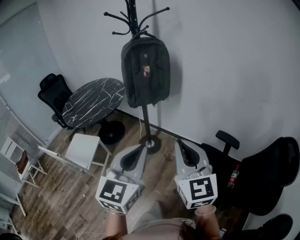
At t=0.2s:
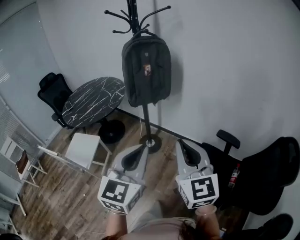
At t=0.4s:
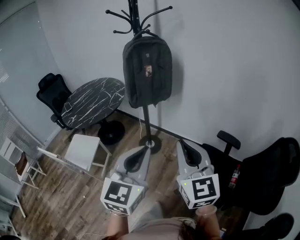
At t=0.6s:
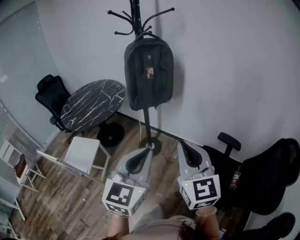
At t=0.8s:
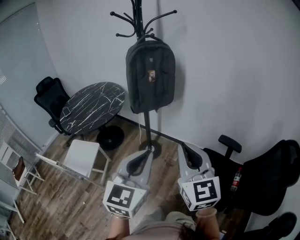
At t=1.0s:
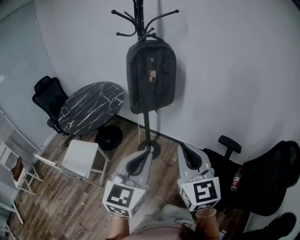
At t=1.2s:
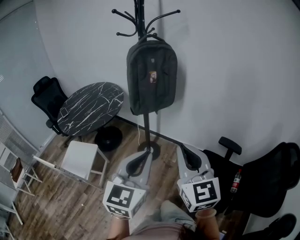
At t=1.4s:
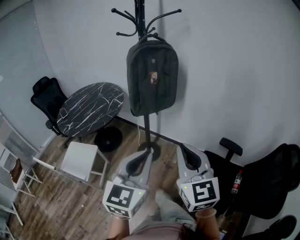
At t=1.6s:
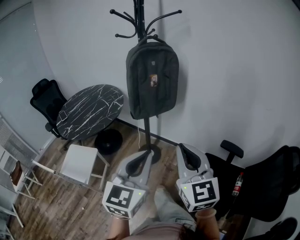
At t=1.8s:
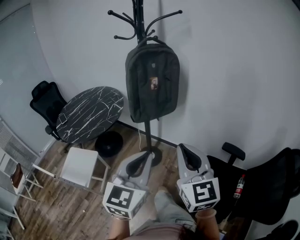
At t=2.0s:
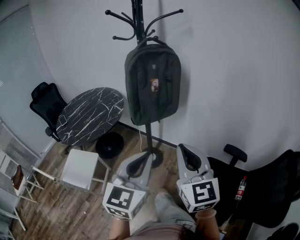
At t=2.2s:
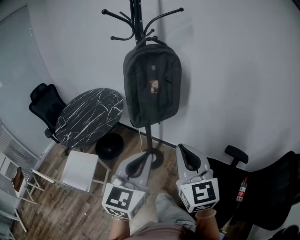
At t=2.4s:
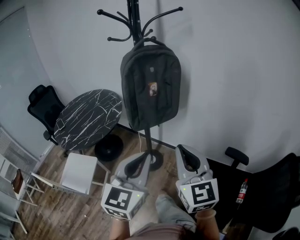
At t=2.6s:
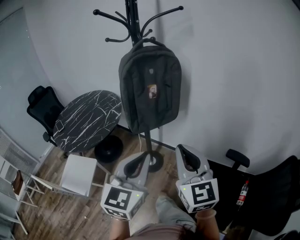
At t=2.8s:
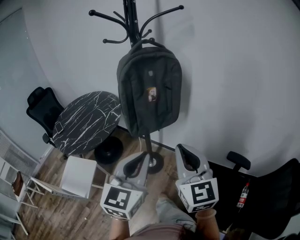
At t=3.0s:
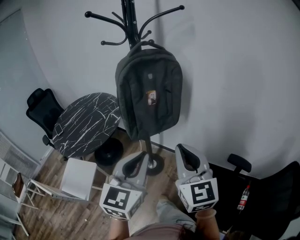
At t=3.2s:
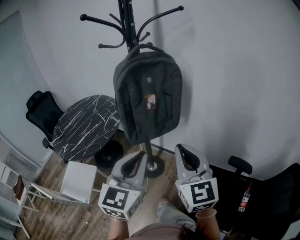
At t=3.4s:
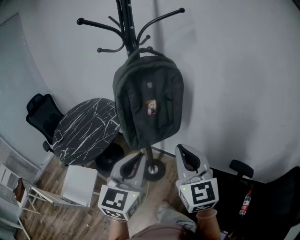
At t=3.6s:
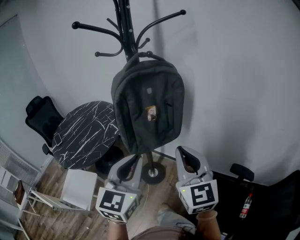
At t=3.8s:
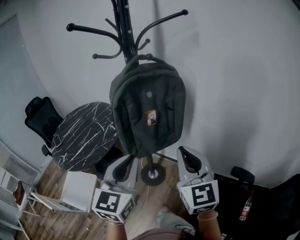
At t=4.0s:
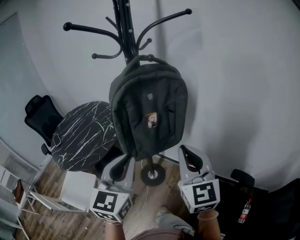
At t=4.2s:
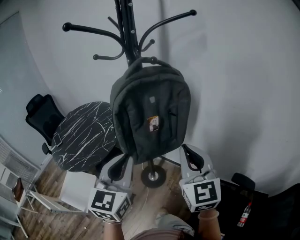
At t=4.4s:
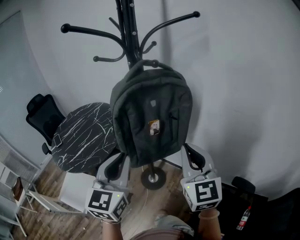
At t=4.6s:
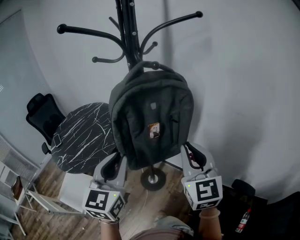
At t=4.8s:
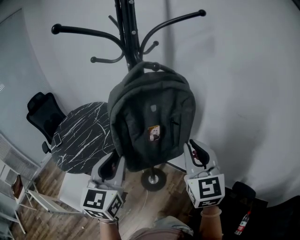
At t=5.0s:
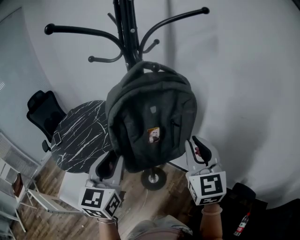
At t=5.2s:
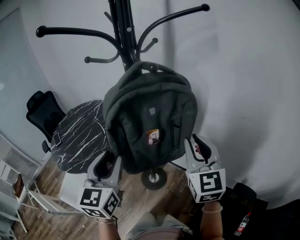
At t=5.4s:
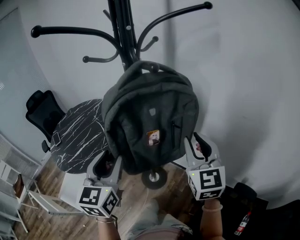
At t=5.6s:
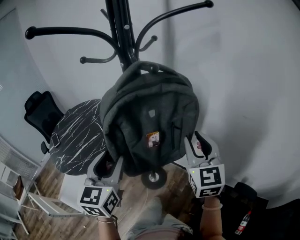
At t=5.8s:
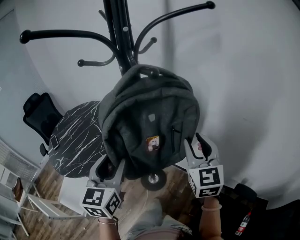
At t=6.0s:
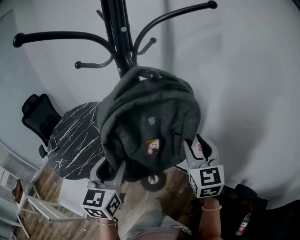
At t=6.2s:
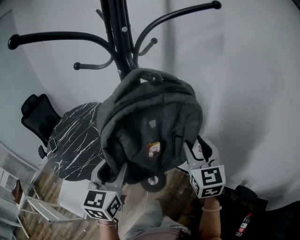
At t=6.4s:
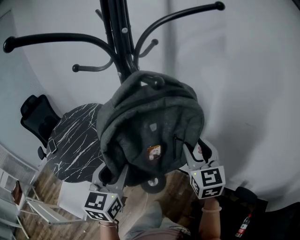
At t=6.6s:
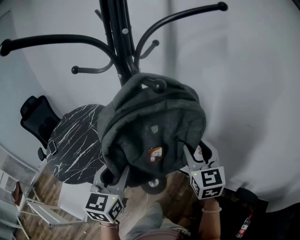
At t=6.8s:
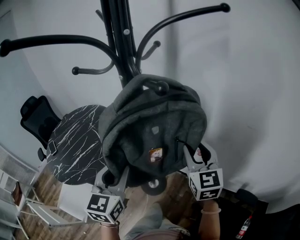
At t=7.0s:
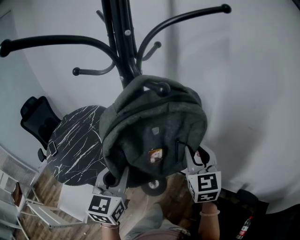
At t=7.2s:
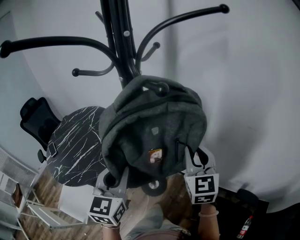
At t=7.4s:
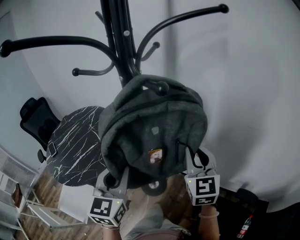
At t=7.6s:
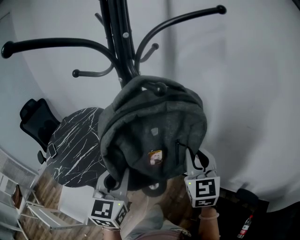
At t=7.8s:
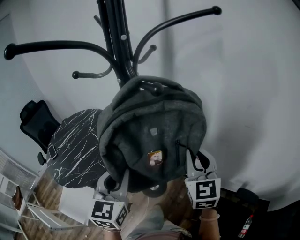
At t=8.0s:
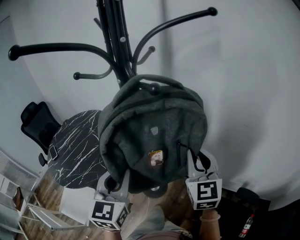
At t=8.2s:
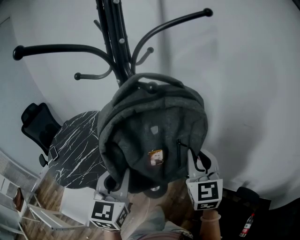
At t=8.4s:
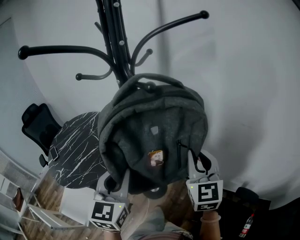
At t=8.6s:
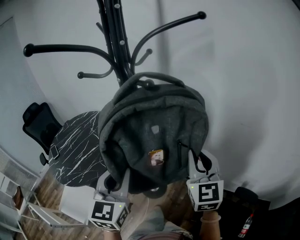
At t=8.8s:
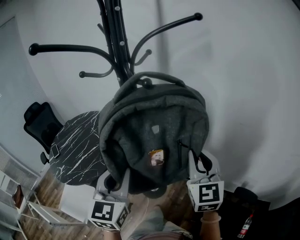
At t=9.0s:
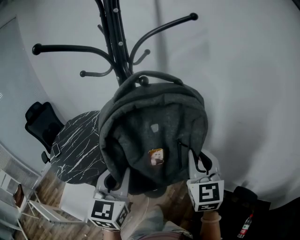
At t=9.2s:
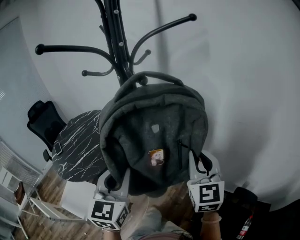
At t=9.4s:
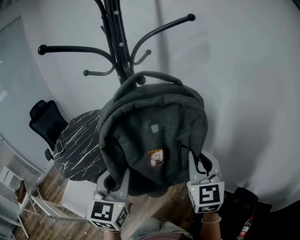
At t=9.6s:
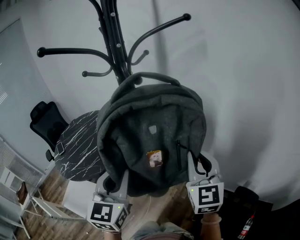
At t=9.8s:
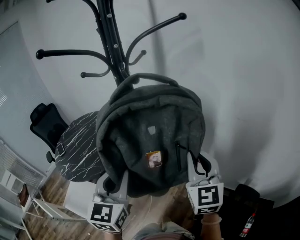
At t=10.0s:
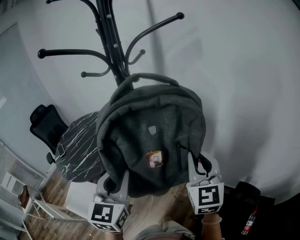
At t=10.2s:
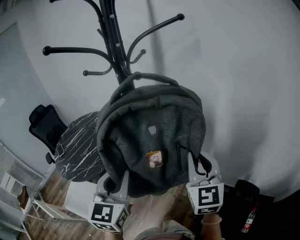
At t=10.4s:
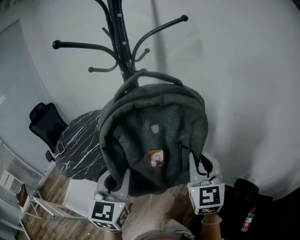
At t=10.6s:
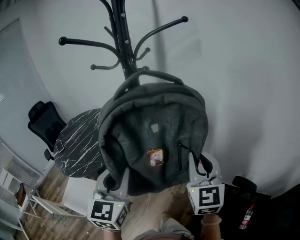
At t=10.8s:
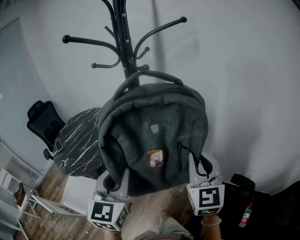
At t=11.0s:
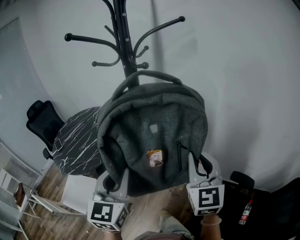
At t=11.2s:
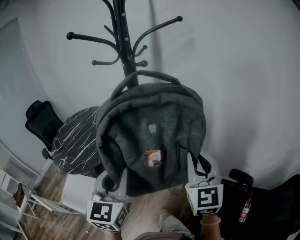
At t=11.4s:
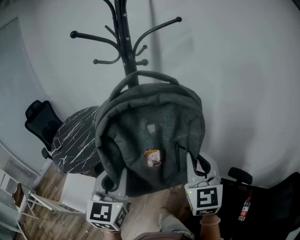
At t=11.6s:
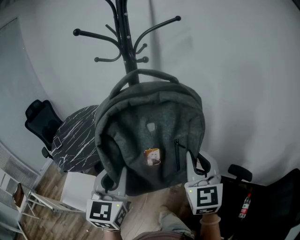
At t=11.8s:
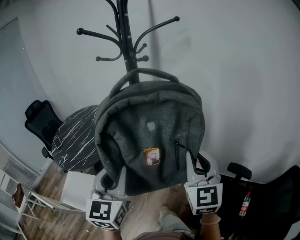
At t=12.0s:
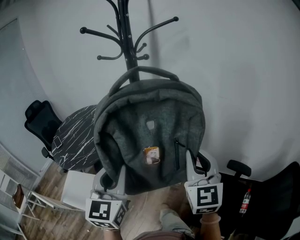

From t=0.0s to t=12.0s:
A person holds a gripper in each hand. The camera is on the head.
From t=0.0s to t=1.6s: The two grippers go about 10 cm forward and to the left.
From t=1.6s to t=3.0s: The grippers both shift forward by approximately 15 cm.
From t=3.0s to t=4.4s: The right gripper shifts about 15 cm forward. Meanwhile the left gripper goes roughly 15 cm forward and to the left.
From t=4.4s to t=6.0s: The two grippers go about 10 cm forward. The left gripper opens up; the right gripper opens up.
From t=6.0s to t=7.6s: The right gripper closes up; the left gripper closes up.
From t=7.6s to t=9.0s: The two grippers go some 5 cm backward.
From t=9.0s to t=10.4s: The grippers both shift backward by approximately 5 cm.
From t=10.4s to t=12.0s: The grippers both shift backward by approximately 15 cm.

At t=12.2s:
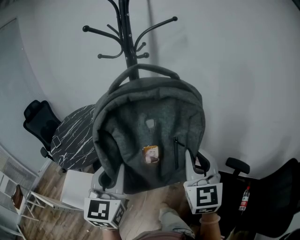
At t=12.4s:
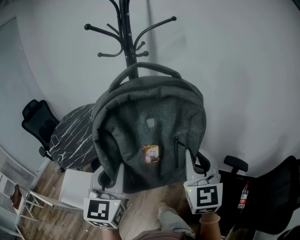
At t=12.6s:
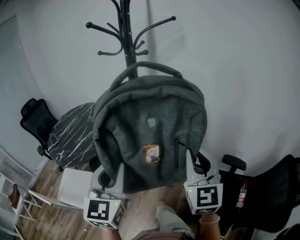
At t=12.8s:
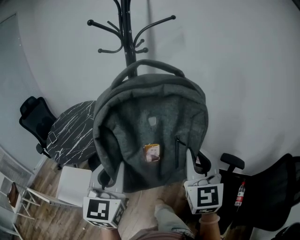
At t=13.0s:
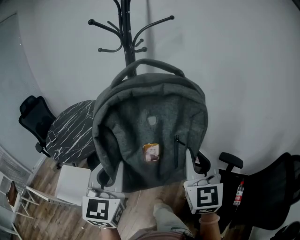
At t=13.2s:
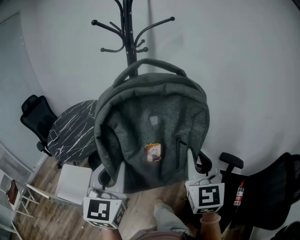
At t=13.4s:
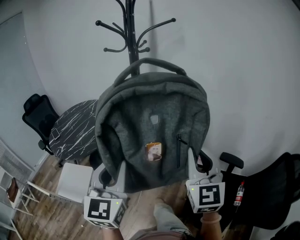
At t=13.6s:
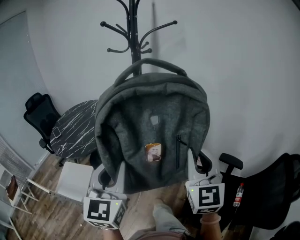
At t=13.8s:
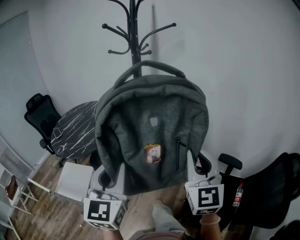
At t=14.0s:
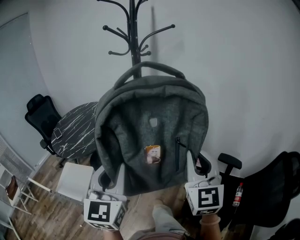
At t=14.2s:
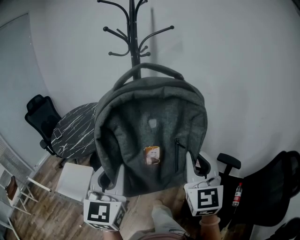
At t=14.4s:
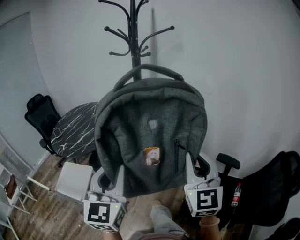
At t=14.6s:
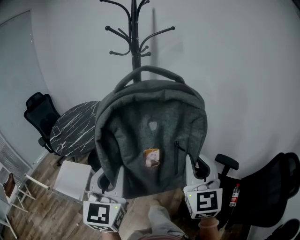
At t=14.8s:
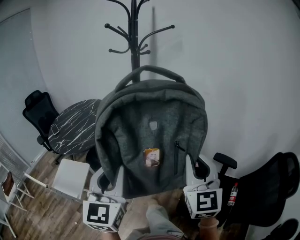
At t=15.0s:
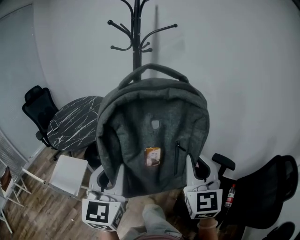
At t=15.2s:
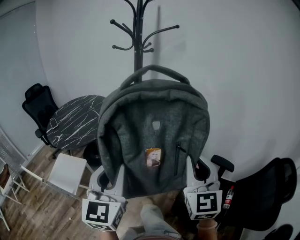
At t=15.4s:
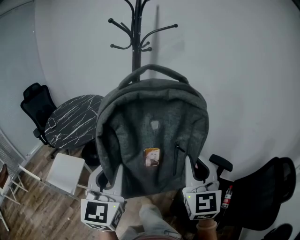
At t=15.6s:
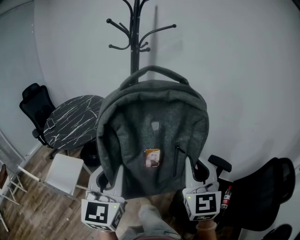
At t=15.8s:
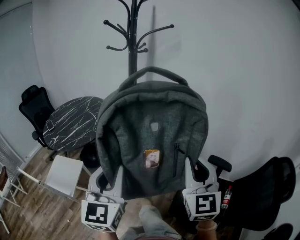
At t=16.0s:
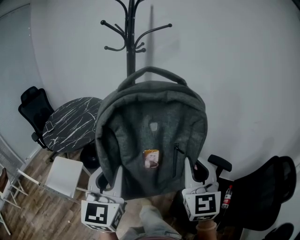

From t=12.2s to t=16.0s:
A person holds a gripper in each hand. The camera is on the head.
From t=12.2s to t=13.4s: Both grippers travel together backward, roughly 10 cm.
From t=13.4s to t=14.8s: The grippers stay close to where they were, moving slightly.
From t=14.8s to t=16.0s: Both grippers stay put.

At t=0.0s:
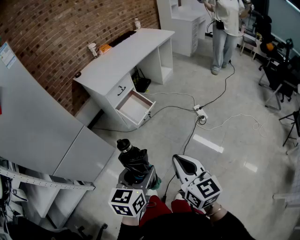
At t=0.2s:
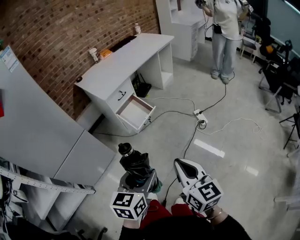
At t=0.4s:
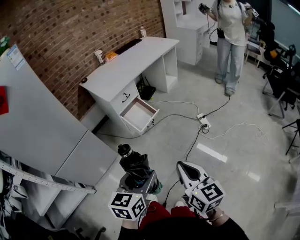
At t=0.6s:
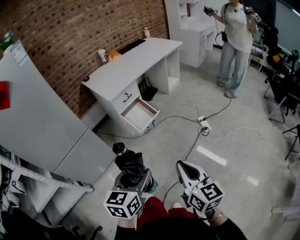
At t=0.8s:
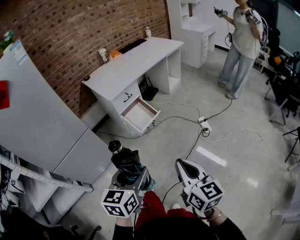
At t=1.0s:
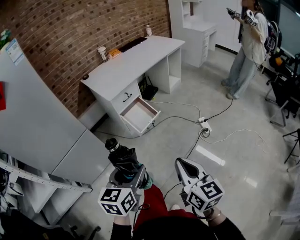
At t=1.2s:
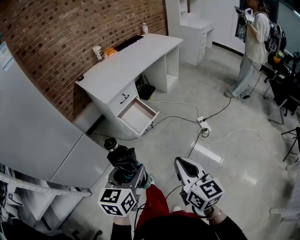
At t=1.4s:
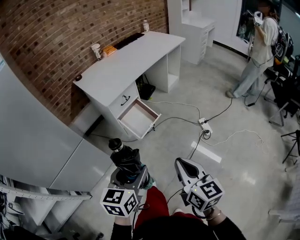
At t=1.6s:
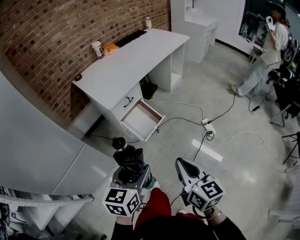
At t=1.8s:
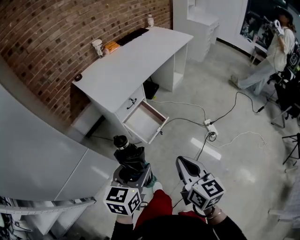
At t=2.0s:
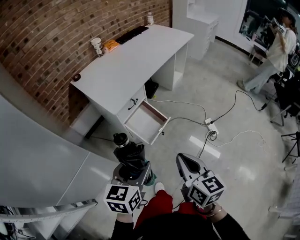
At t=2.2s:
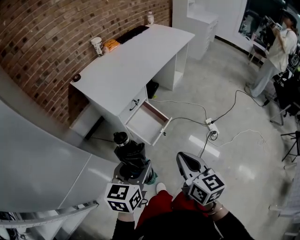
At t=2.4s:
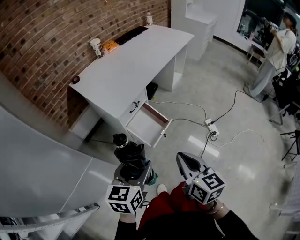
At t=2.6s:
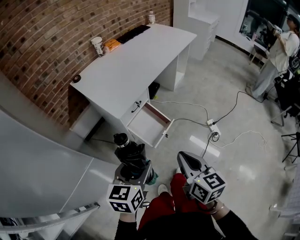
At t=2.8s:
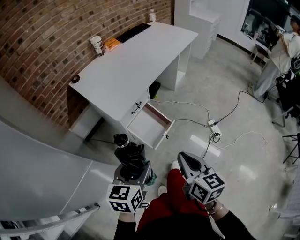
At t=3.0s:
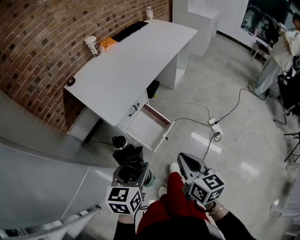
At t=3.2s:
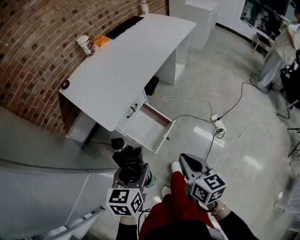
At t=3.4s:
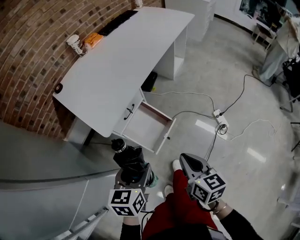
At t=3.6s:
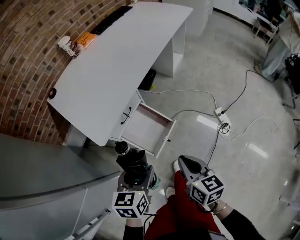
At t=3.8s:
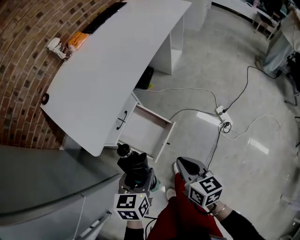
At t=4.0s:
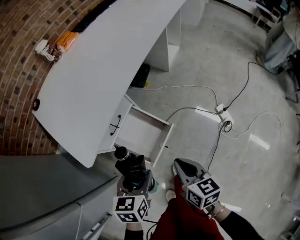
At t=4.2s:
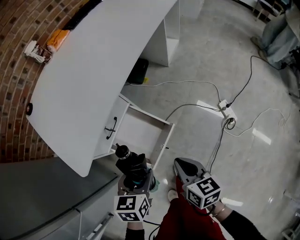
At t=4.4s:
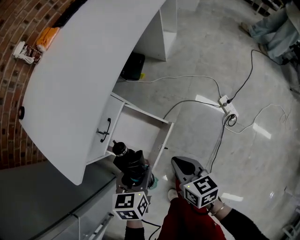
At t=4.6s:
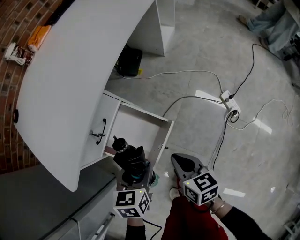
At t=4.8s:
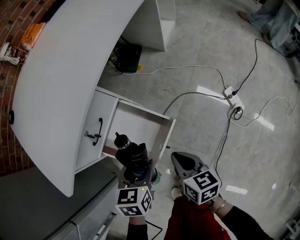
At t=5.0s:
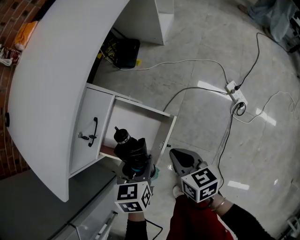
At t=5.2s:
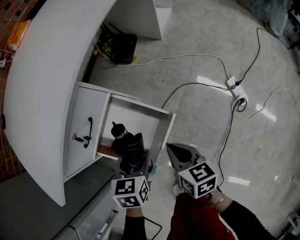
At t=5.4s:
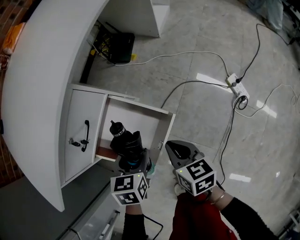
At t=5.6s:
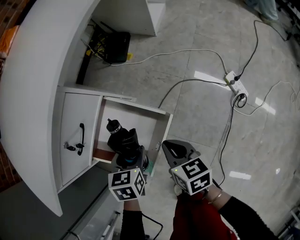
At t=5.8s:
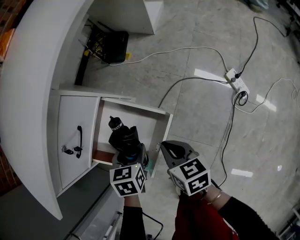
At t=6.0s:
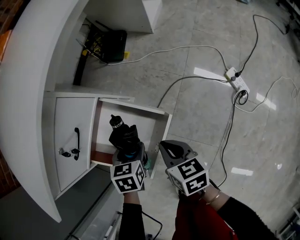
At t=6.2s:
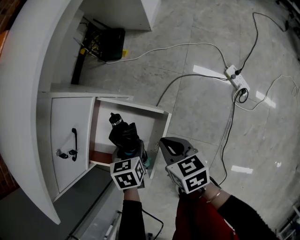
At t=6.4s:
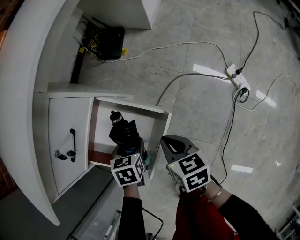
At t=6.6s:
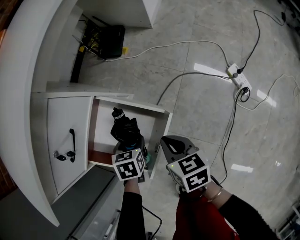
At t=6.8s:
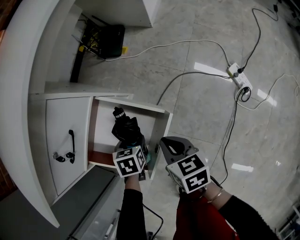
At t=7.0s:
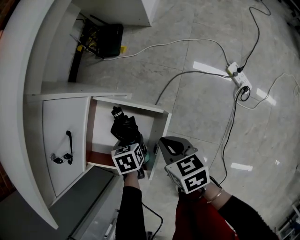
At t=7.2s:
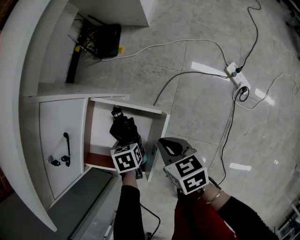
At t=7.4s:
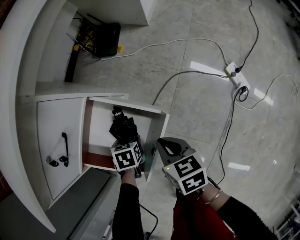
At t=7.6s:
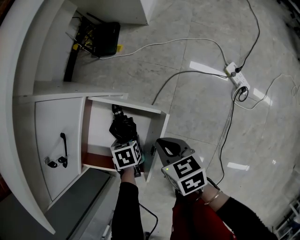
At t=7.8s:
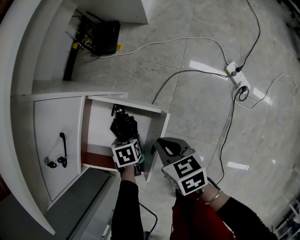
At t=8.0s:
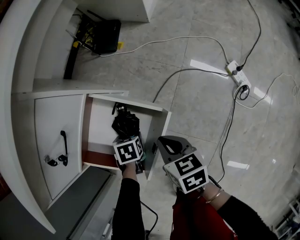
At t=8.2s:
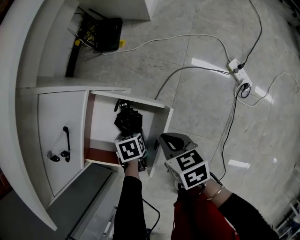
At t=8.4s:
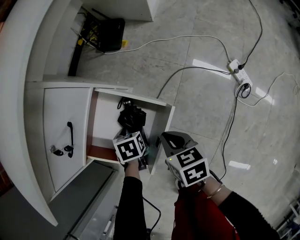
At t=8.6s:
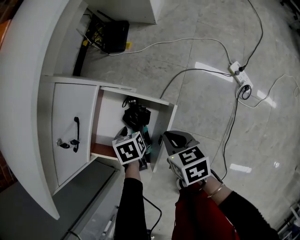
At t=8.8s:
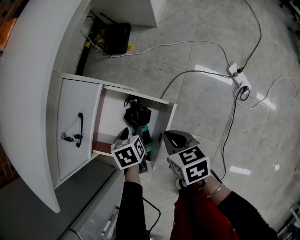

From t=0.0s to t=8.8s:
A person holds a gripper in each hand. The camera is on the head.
From t=0.0s to t=1.4s: The grippers both shift forward by about 15 cm.
From t=1.4s to t=3.0s: Both grippers travel together forward and to the left, some 25 cm.
From t=3.0s to t=4.4s: Both grippers move downward and forward, some 30 cm.
From t=4.4s to t=5.8s: Both grippers travel together downward, some 20 cm.
From t=5.8s to t=7.4s: The left gripper heads downward, covering some 15 cm.
From t=7.4s to t=8.8s: The left gripper moves upward, some 10 cm.
